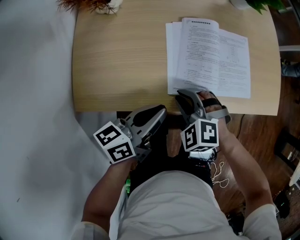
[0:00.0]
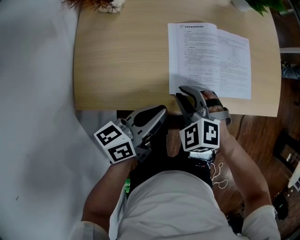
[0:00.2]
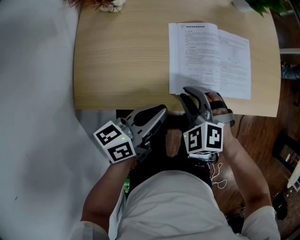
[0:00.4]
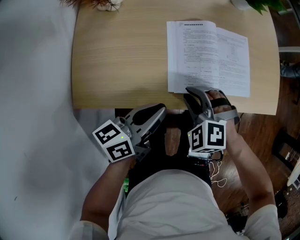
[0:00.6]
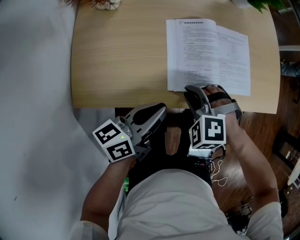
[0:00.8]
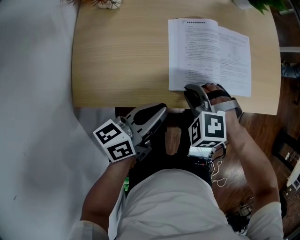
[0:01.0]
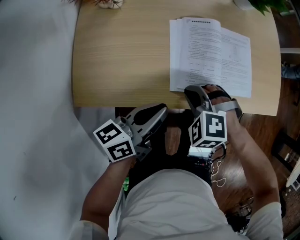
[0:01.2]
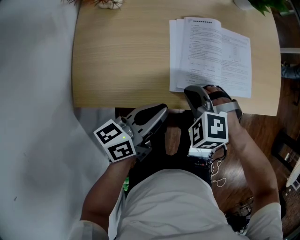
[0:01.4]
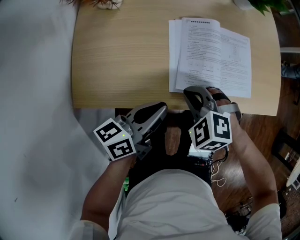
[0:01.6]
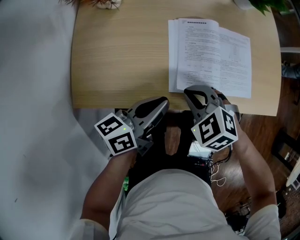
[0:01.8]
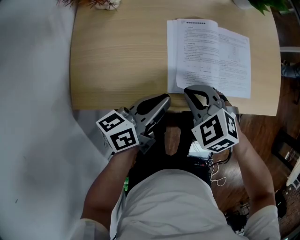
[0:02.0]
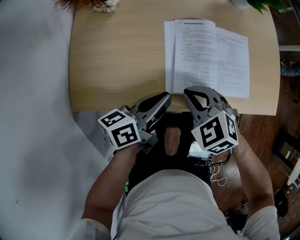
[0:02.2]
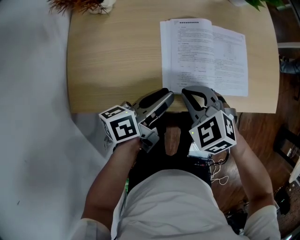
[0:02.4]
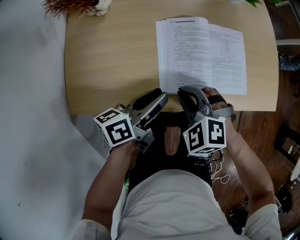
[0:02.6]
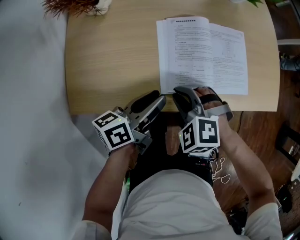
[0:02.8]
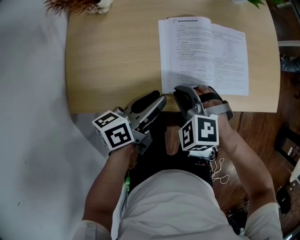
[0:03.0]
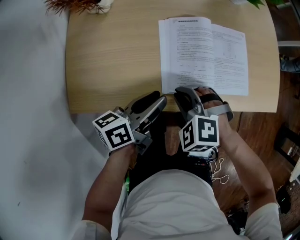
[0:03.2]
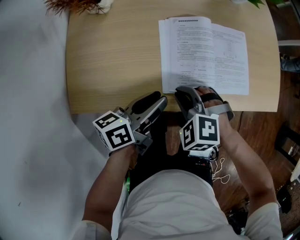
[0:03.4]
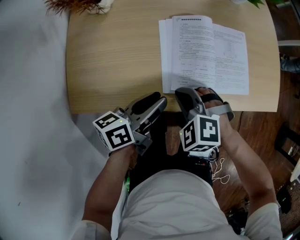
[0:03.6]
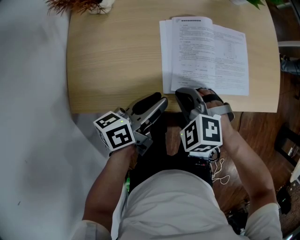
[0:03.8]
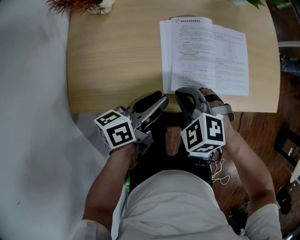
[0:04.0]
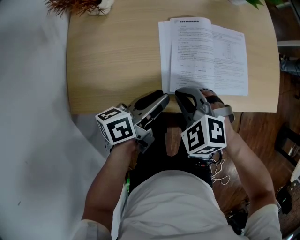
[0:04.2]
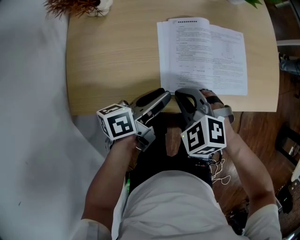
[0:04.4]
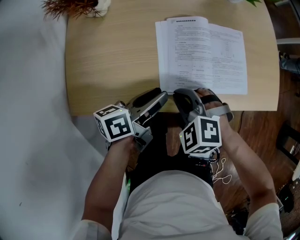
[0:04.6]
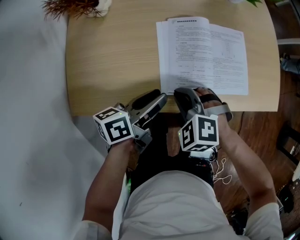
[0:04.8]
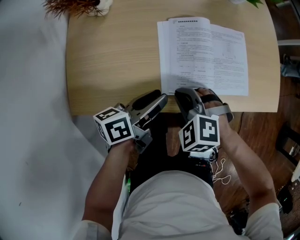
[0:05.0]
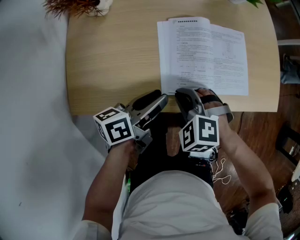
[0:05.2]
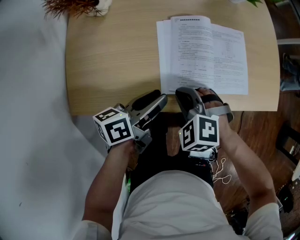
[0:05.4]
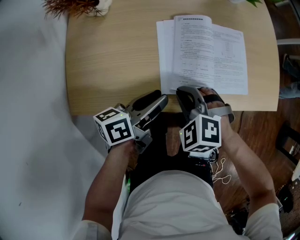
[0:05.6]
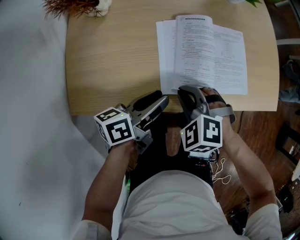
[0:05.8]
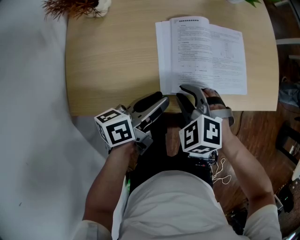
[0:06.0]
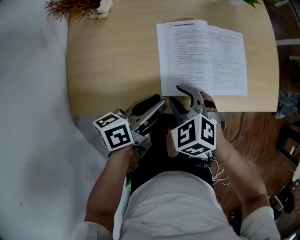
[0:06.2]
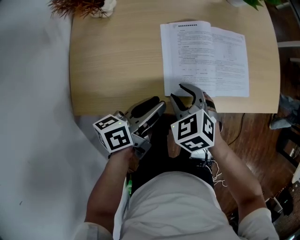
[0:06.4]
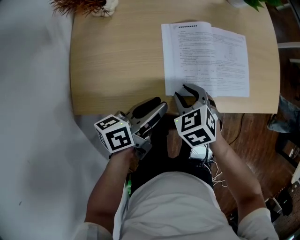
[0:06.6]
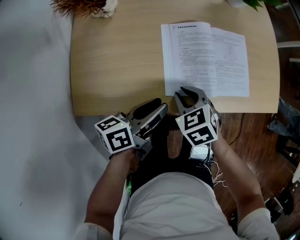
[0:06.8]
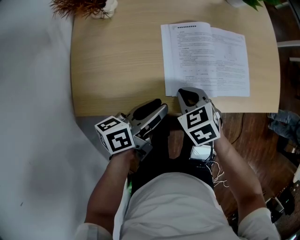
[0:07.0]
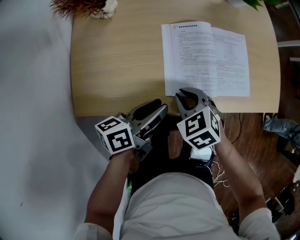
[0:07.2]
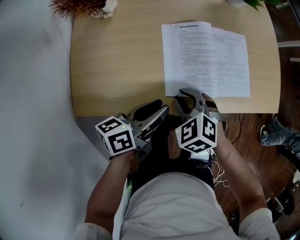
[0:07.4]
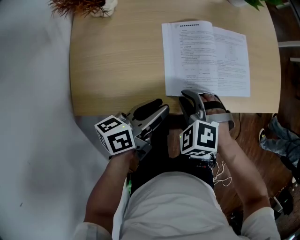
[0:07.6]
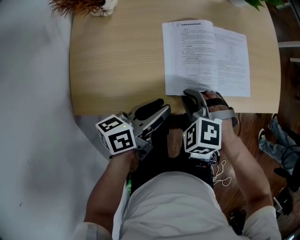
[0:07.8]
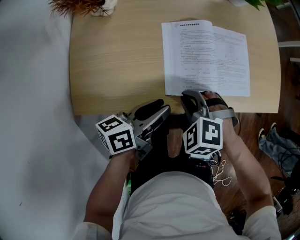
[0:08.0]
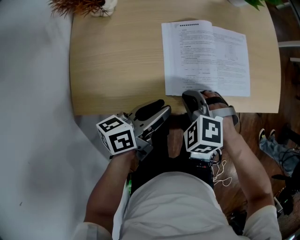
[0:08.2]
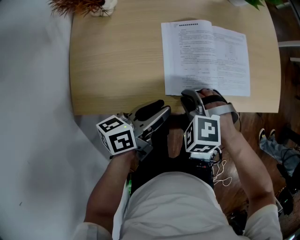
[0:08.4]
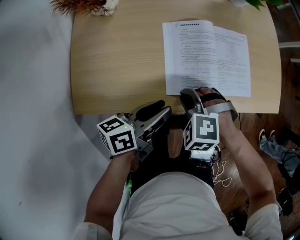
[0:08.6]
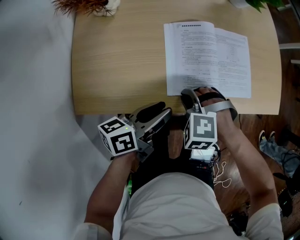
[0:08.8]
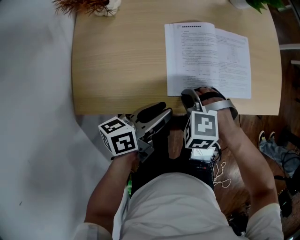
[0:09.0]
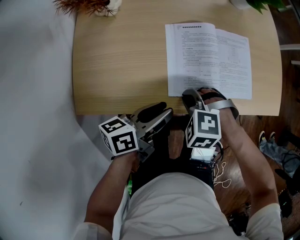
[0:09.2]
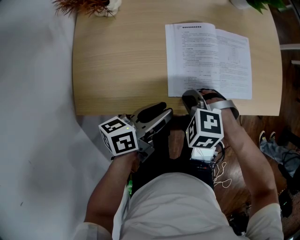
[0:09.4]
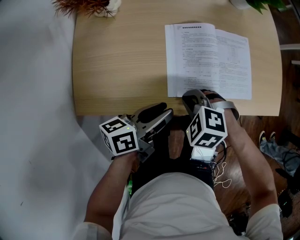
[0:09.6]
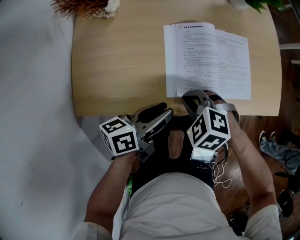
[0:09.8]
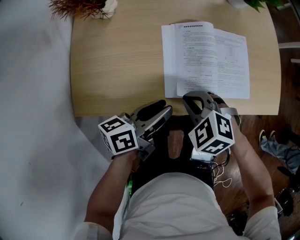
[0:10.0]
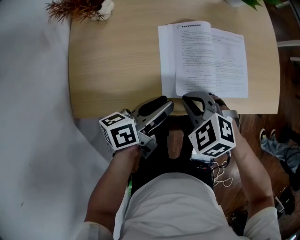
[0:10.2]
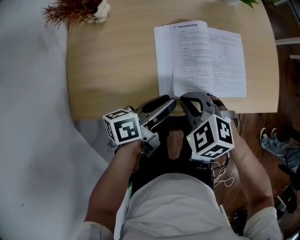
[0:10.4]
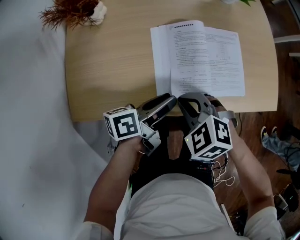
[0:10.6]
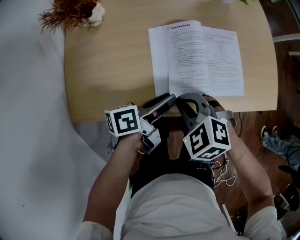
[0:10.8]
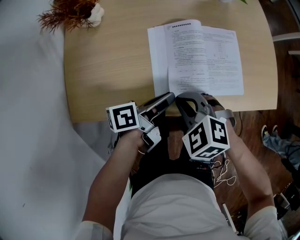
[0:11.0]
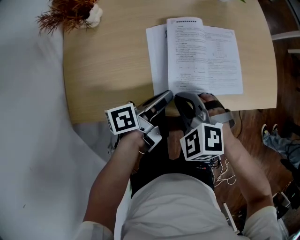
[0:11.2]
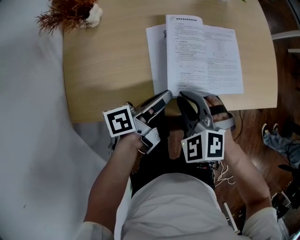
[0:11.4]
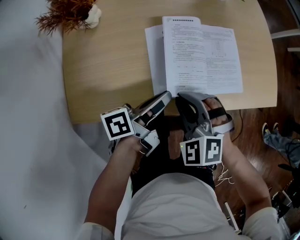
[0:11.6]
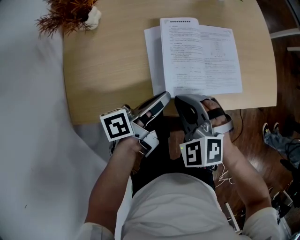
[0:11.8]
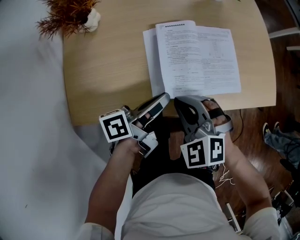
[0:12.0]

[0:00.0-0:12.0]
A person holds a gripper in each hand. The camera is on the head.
0:00.0 to 0:01.6: There are only small adjustments of the grippers.
0:01.6 to 0:03.0: The left gripper opens up.
0:03.0 to 0:06.0: There are only small adjustments of the grippers.
0:07.6 to 0:09.0: The grippers move only a little.
0:09.0 to 0:10.4: The right gripper moves upward, some 5 cm, and swivels roughly 30 degrees.
0:10.4 to 0:12.0: The left gripper closes.

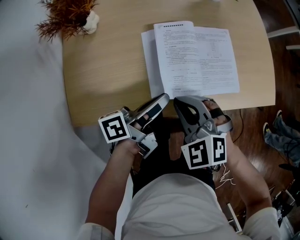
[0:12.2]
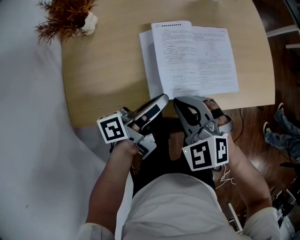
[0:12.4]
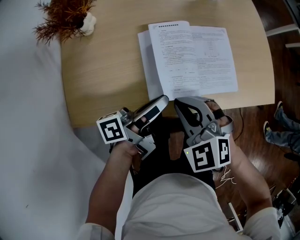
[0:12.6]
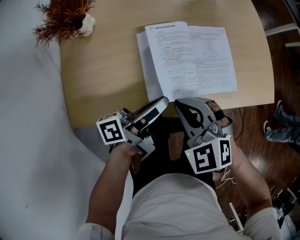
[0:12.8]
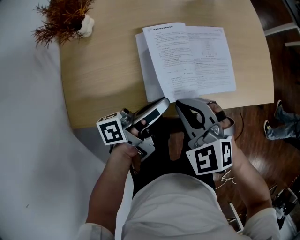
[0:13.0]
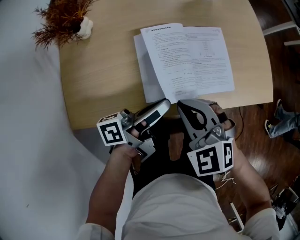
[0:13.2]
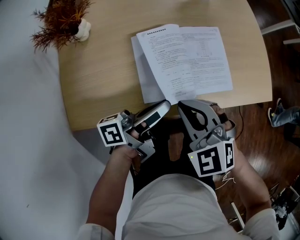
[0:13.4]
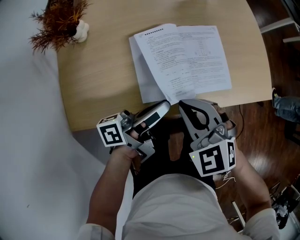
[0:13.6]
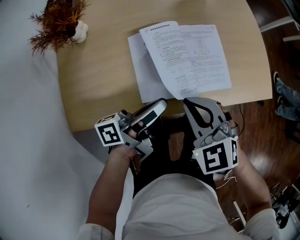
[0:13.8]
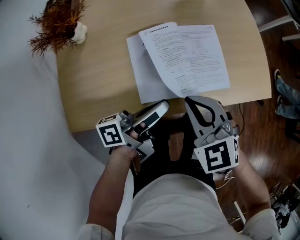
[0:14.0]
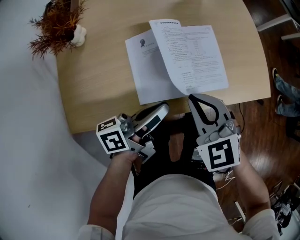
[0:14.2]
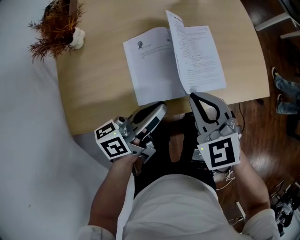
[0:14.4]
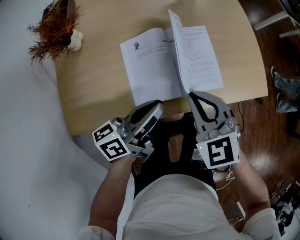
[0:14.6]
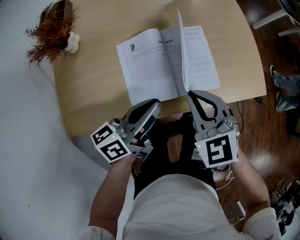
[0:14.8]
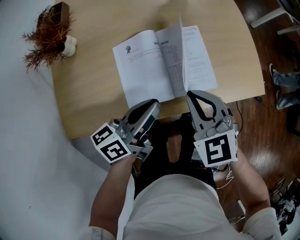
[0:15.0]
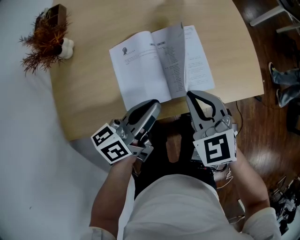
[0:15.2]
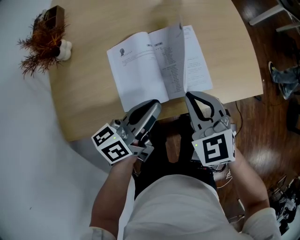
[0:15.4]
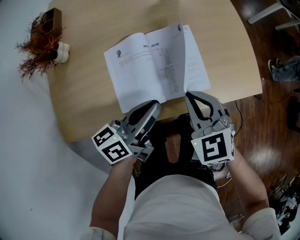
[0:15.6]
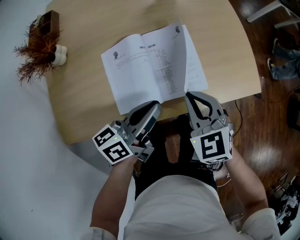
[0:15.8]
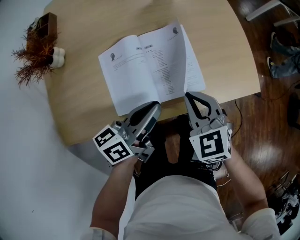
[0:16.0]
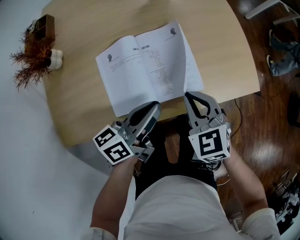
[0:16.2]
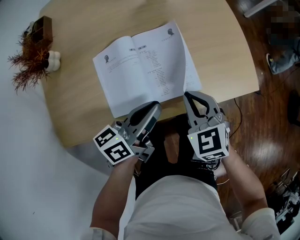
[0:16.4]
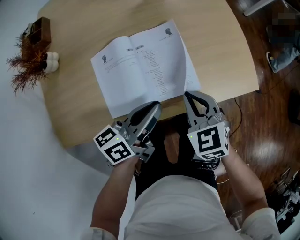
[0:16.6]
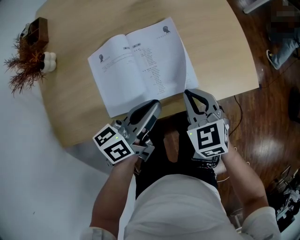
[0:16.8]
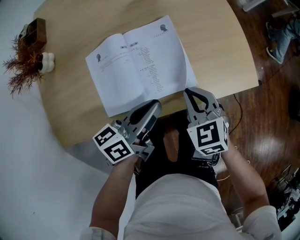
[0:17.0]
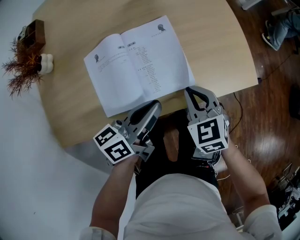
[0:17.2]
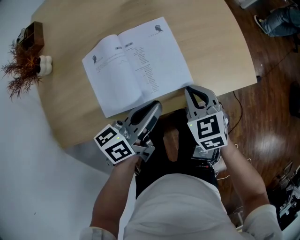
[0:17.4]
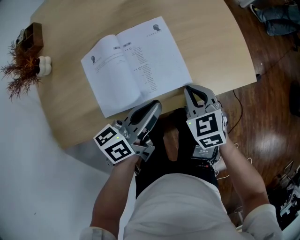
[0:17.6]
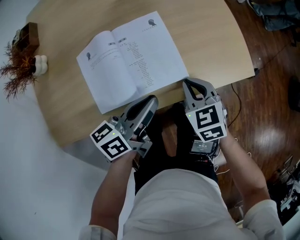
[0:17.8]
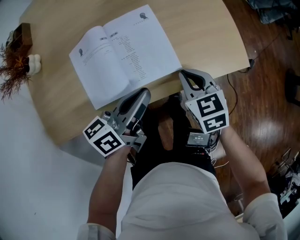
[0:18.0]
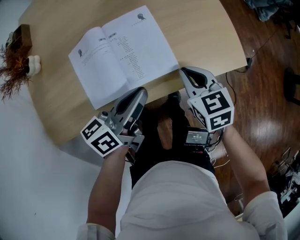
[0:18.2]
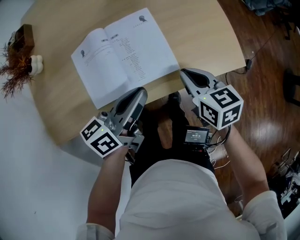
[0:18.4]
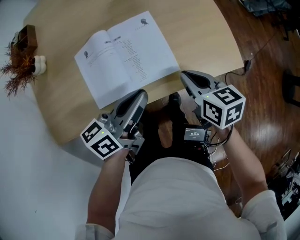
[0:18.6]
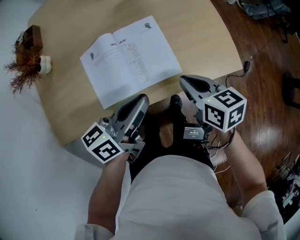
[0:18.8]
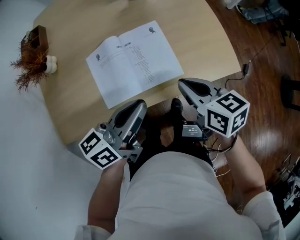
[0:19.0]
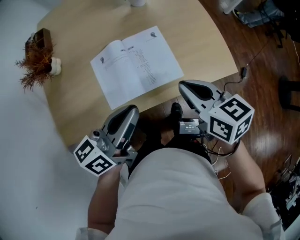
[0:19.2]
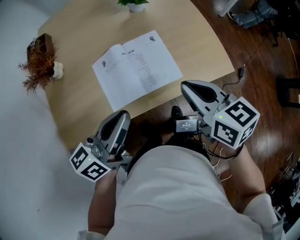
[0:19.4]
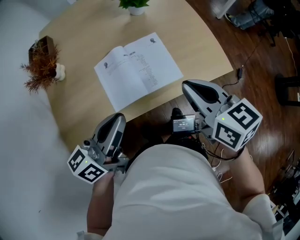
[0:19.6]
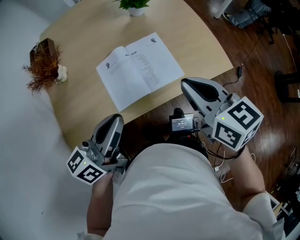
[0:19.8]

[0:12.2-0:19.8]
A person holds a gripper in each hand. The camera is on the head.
0:12.2 to 0:13.8: The right gripper shifts about 5 cm to the right.
0:13.8 to 0:15.2: The left gripper changes place by roughly 5 cm, and turns by roughly 30 degrees. The right gripper goes roughly 10 cm to the right.
0:15.2 to 0:16.8: The left gripper heads to the right, covering approximately 5 cm, while the right gripper travels downward and to the right by approximately 10 cm.
0:16.8 to 0:18.2: The right gripper shifts about 5 cm to the right.
0:18.2 to 0:19.8: The right gripper goes approximately 20 cm upward, and turns by approximately 20 degrees, while the left gripper goes about 20 cm upward, to the left and backward.

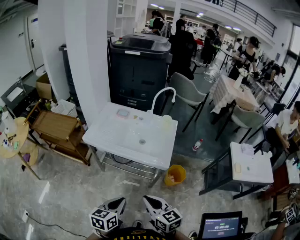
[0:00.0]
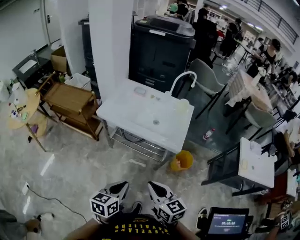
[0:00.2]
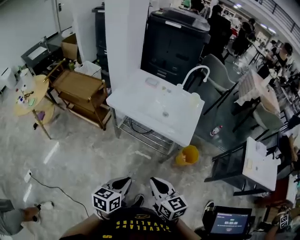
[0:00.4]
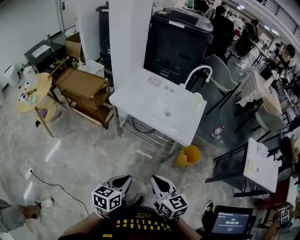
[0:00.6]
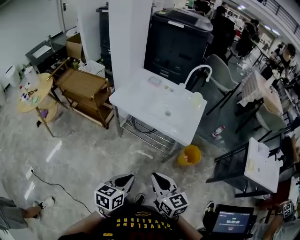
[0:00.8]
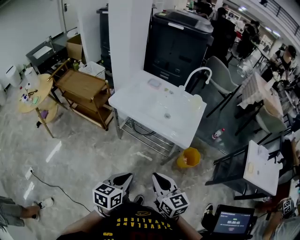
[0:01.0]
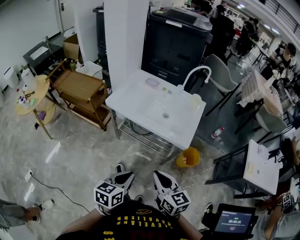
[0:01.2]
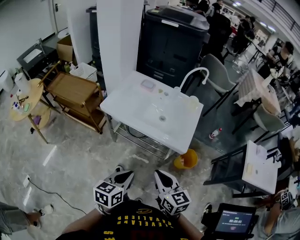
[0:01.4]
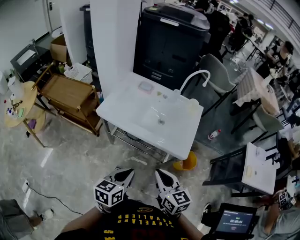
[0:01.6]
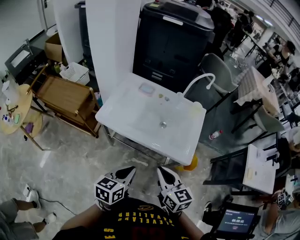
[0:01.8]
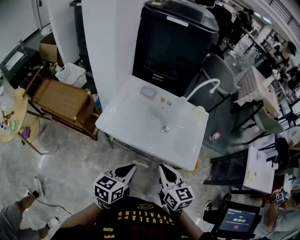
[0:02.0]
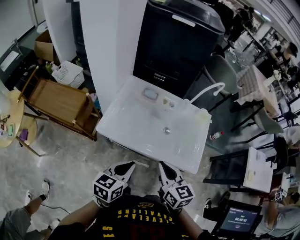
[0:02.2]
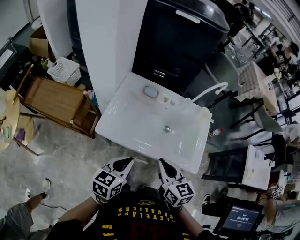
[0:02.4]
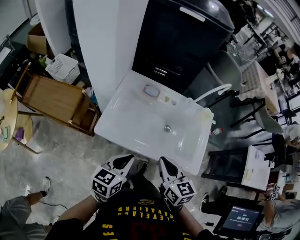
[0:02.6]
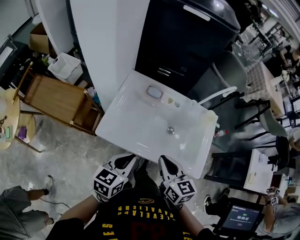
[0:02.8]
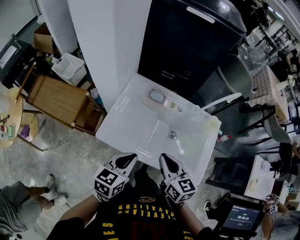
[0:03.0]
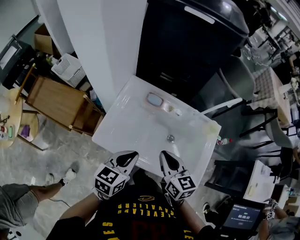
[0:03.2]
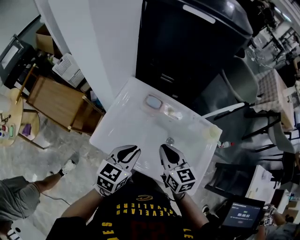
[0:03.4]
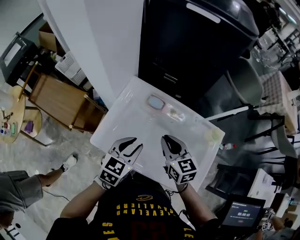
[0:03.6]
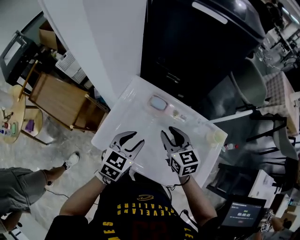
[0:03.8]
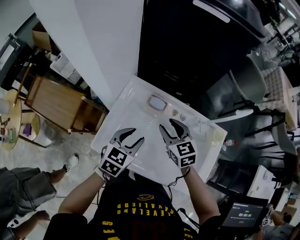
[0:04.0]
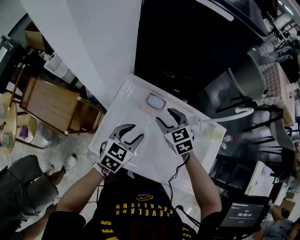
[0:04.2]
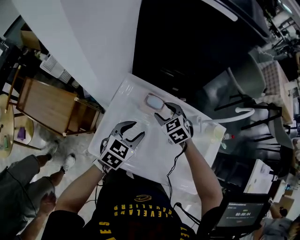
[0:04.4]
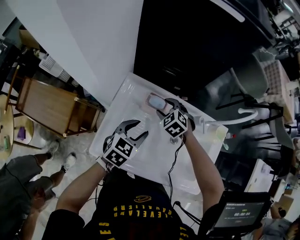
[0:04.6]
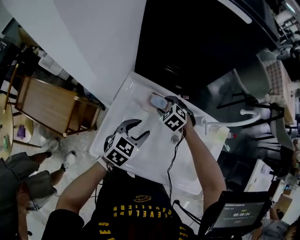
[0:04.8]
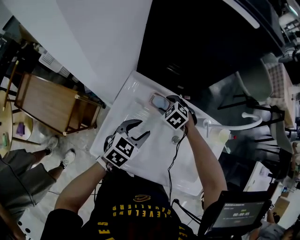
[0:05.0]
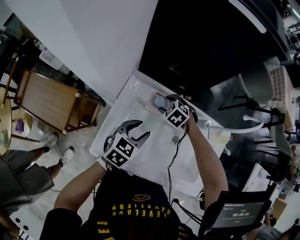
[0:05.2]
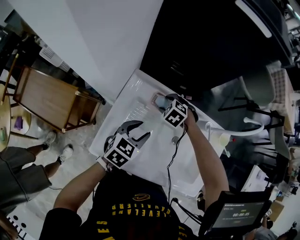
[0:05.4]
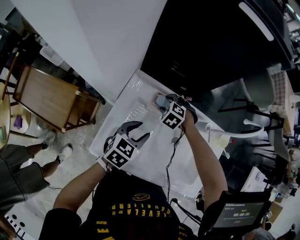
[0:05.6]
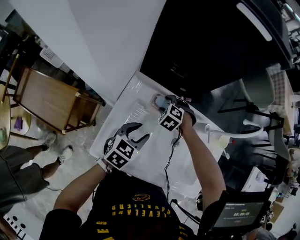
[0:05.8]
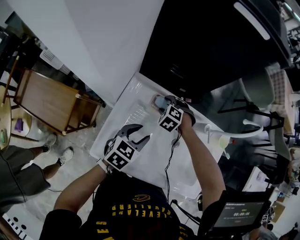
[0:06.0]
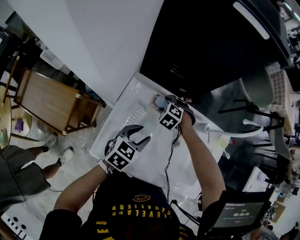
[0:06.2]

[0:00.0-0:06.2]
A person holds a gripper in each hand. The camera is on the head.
0:00.0 to 0:01.6: The grippers both shift forward by roughly 15 cm.
0:01.6 to 0:03.2: The grippers both shift forward by some 30 cm.
0:03.2 to 0:04.6: The right gripper heads forward and downward, covering about 30 cm, tilts its fingers roughly 40 degrees downward, and opens up. Meanwhile the left gripper moves forward and downward, roughly 20 cm, changes its angle by approximately 20 degrees, and opens.
0:04.6 to 0:06.2: The right gripper moves downward, some 5 cm.
